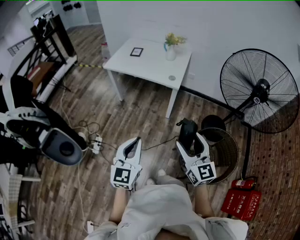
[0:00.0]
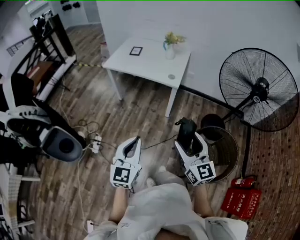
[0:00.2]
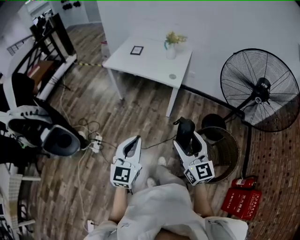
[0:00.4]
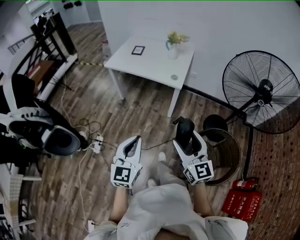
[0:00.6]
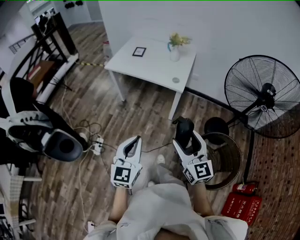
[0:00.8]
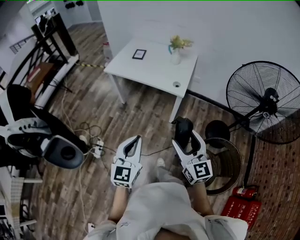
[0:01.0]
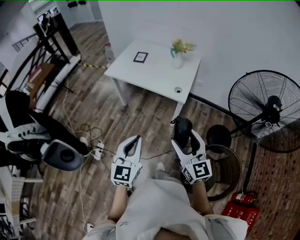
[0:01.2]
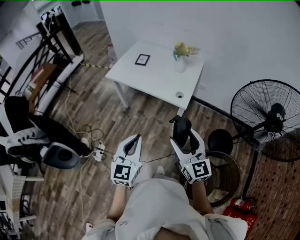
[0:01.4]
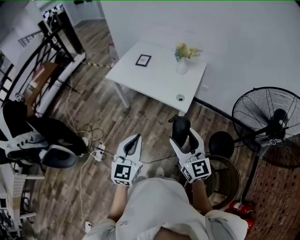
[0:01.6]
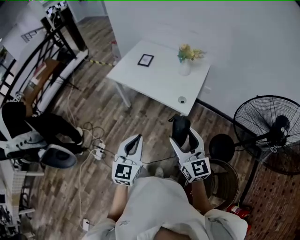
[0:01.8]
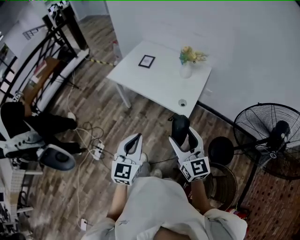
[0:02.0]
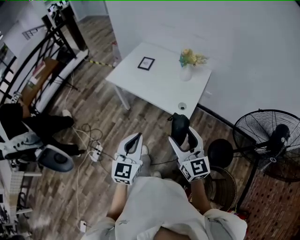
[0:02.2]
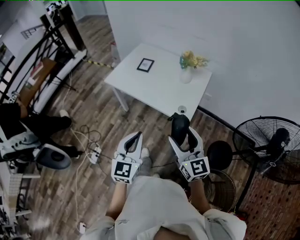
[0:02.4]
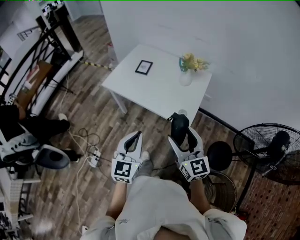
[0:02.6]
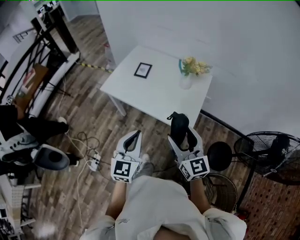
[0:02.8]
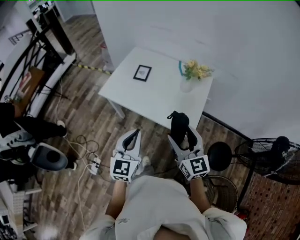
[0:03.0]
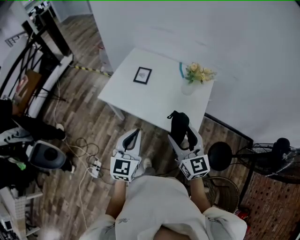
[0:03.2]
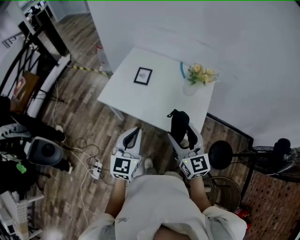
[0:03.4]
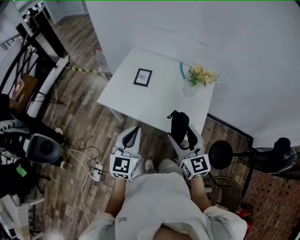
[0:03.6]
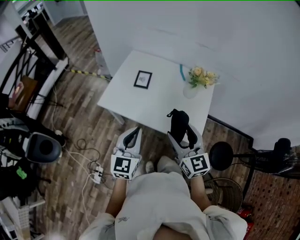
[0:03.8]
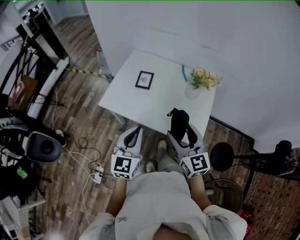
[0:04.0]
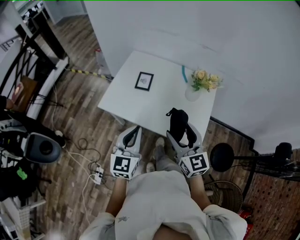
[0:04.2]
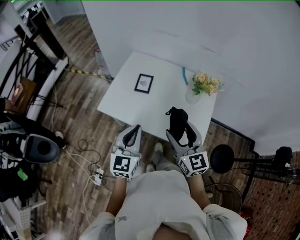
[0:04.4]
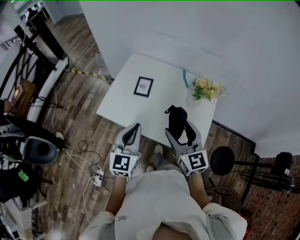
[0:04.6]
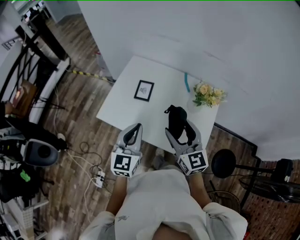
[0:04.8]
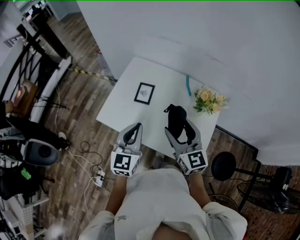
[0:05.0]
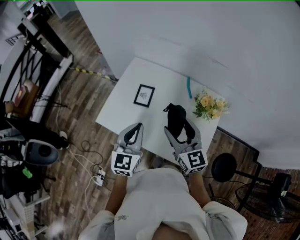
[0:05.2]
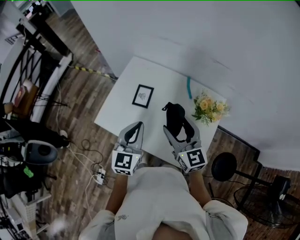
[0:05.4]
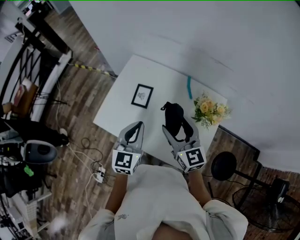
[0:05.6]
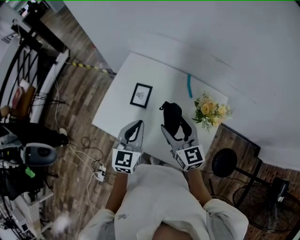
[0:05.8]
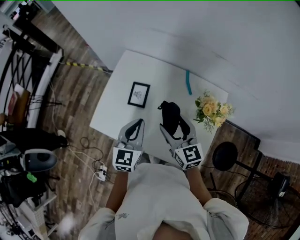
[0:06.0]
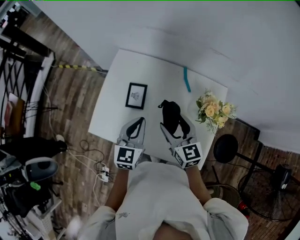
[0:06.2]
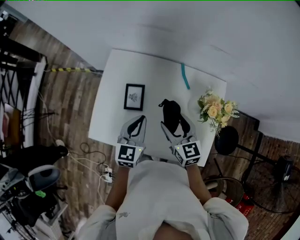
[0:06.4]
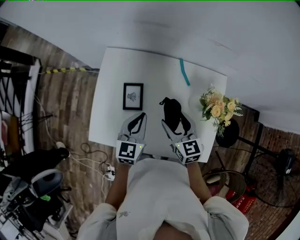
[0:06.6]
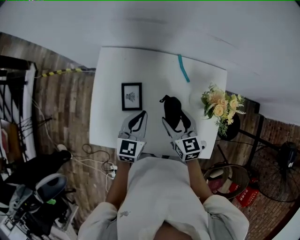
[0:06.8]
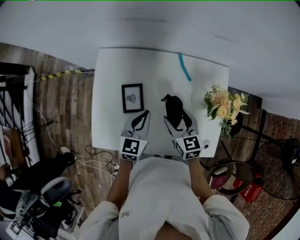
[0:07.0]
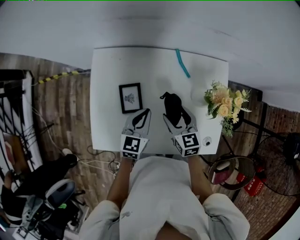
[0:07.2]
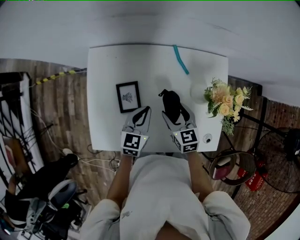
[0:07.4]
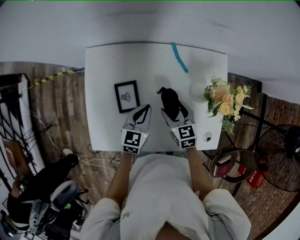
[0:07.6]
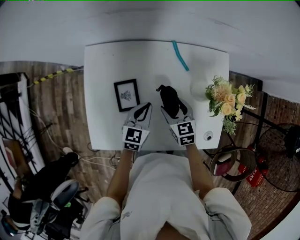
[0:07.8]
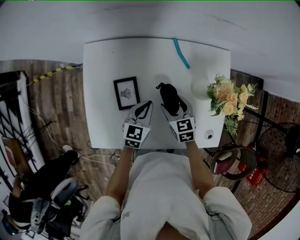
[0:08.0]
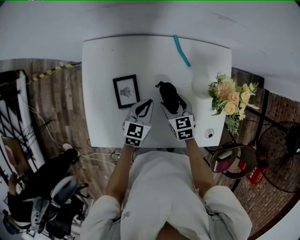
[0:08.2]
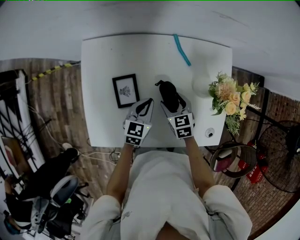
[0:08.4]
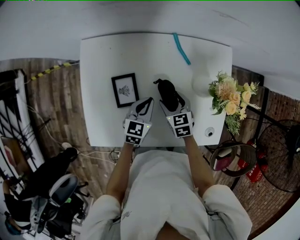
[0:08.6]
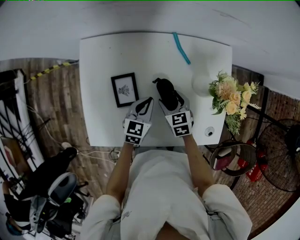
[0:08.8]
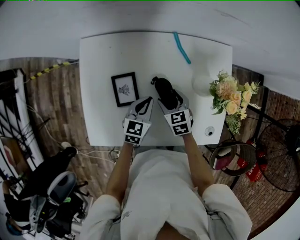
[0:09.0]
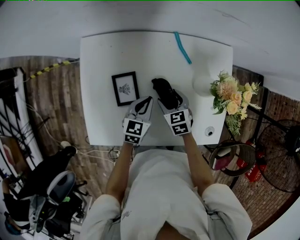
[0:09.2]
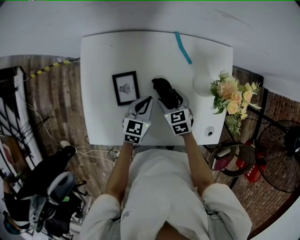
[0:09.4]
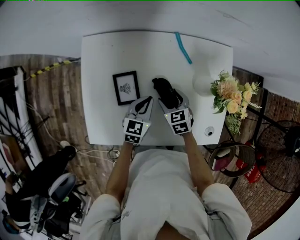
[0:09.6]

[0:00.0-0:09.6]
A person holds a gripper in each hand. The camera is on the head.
0:00.0 to 0:01.6: Both grippers move forward, about 25 cm.
0:01.6 to 0:03.2: The grippers both shift forward by about 30 cm.
0:03.2 to 0:04.8: Both grippers move forward, approximately 20 cm.
0:04.8 to 0:06.4: Both grippers move forward and downward, about 20 cm. The right gripper changes its angle by roughly 20 degrees.
0:06.4 to 0:08.0: The right gripper shifts some 15 cm downward, and rotates about 20 degrees. Meanwhile the left gripper travels downward and forward by roughly 15 cm, and swivels about 20 degrees.
0:08.0 to 0:09.6: The grippers stay close to where they were, moving slightly.

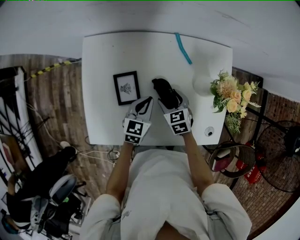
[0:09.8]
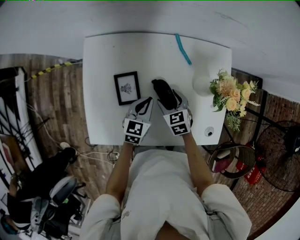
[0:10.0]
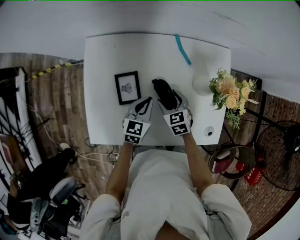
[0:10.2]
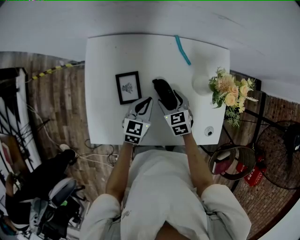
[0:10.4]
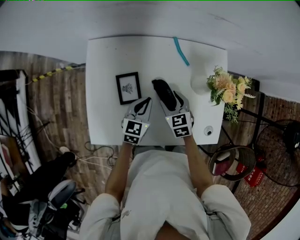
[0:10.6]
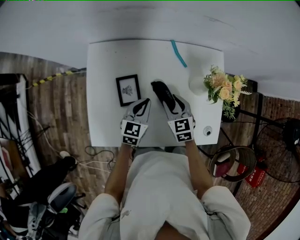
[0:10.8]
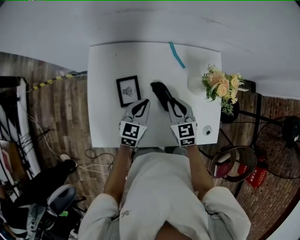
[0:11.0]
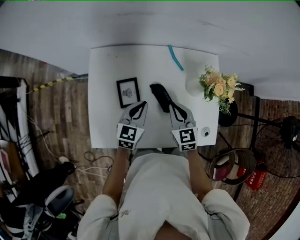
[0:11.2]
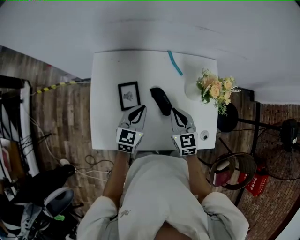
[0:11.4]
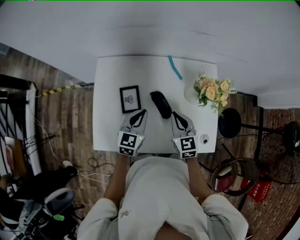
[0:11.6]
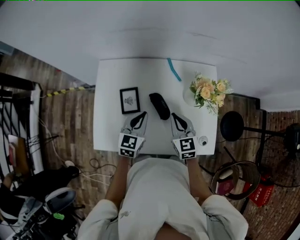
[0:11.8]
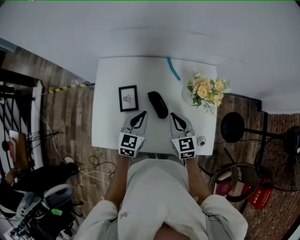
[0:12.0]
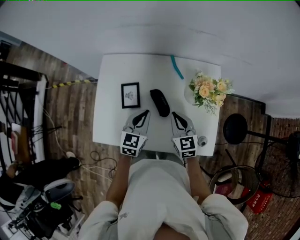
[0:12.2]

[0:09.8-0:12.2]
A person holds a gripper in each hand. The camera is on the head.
0:09.8 to 0:11.0: The left gripper travels upward by approximately 5 cm. The right gripper goes roughly 10 cm upward, and closes its fingers.
0:11.0 to 0:12.2: The right gripper travels to the right by roughly 5 cm, while the left gripper shifts by about 5 cm.

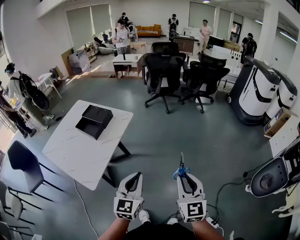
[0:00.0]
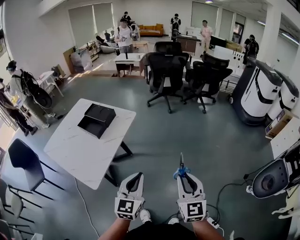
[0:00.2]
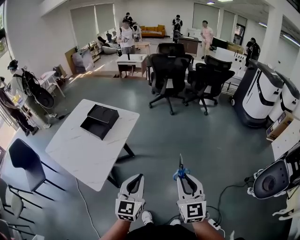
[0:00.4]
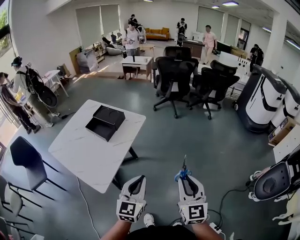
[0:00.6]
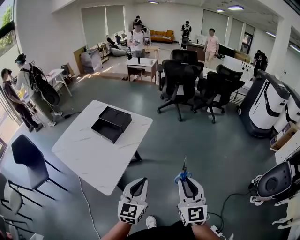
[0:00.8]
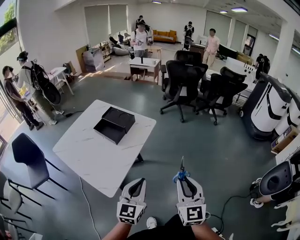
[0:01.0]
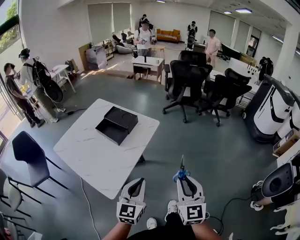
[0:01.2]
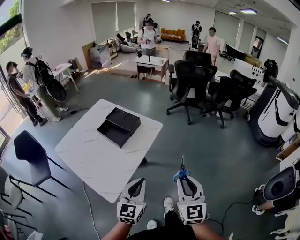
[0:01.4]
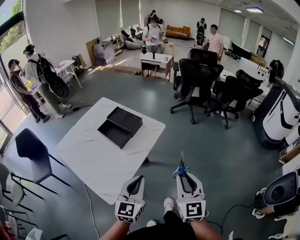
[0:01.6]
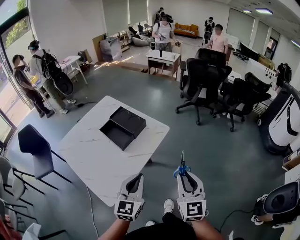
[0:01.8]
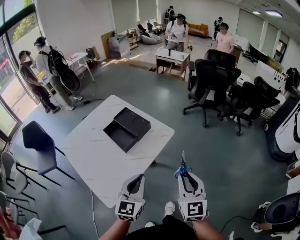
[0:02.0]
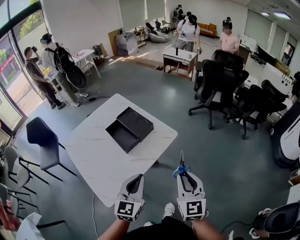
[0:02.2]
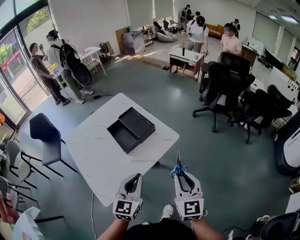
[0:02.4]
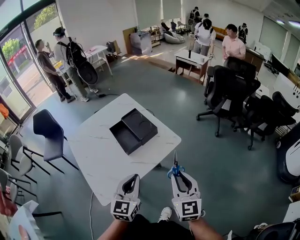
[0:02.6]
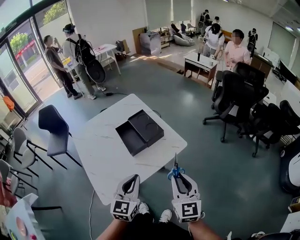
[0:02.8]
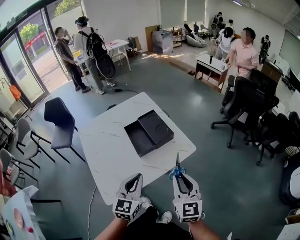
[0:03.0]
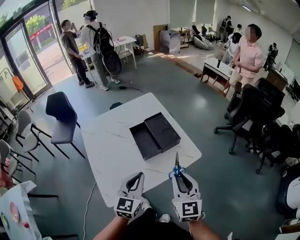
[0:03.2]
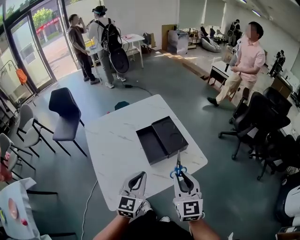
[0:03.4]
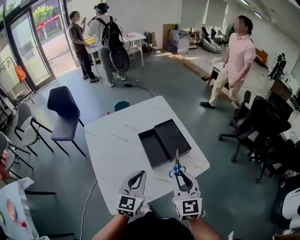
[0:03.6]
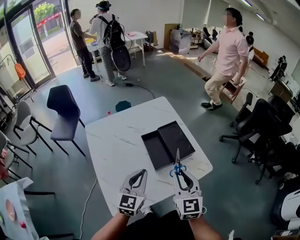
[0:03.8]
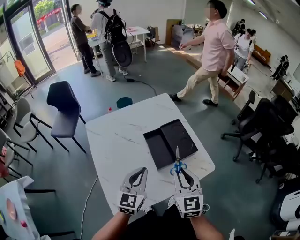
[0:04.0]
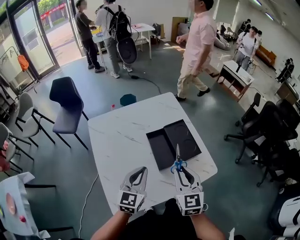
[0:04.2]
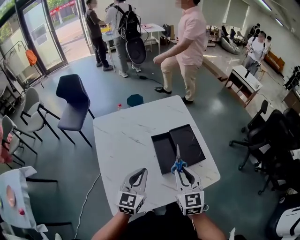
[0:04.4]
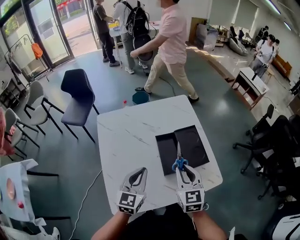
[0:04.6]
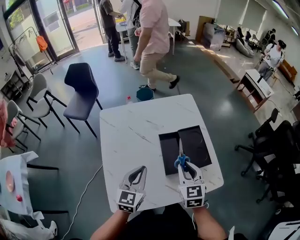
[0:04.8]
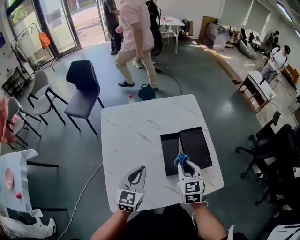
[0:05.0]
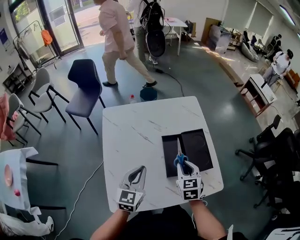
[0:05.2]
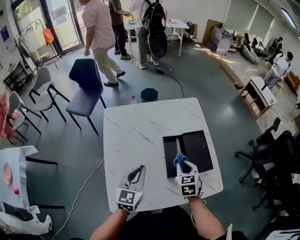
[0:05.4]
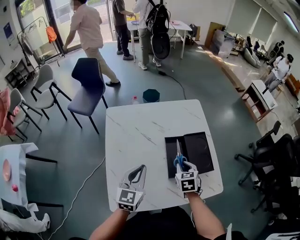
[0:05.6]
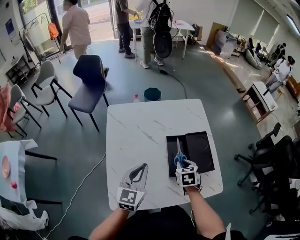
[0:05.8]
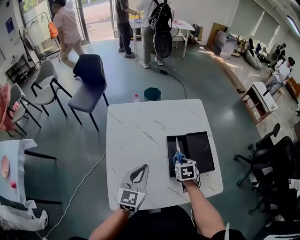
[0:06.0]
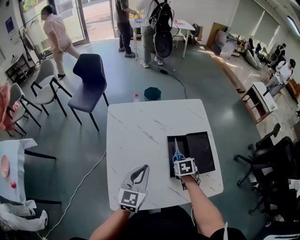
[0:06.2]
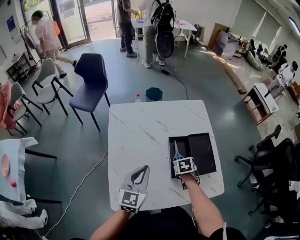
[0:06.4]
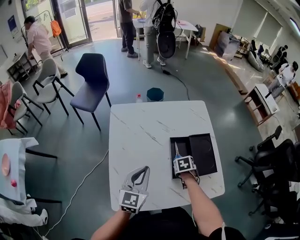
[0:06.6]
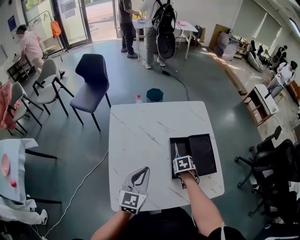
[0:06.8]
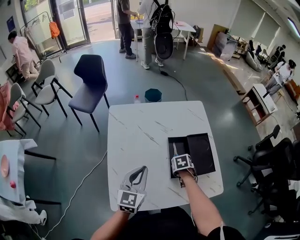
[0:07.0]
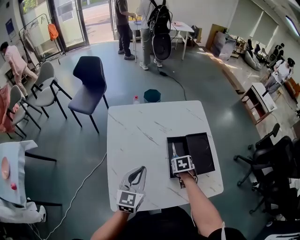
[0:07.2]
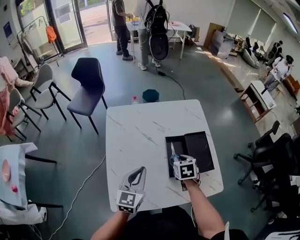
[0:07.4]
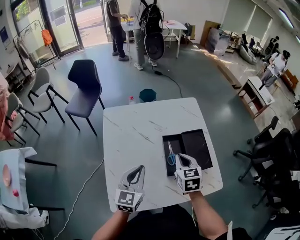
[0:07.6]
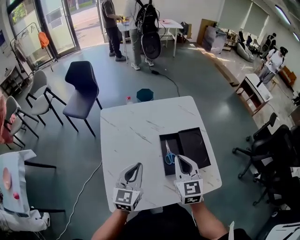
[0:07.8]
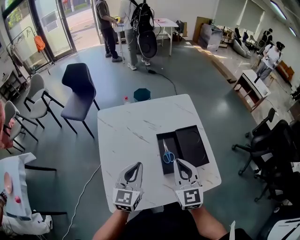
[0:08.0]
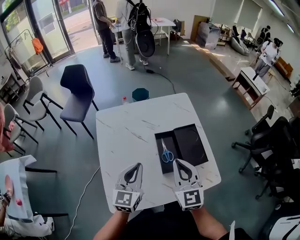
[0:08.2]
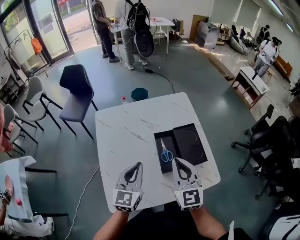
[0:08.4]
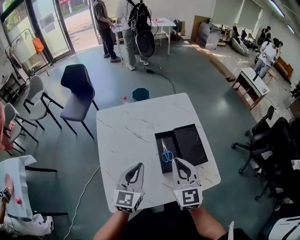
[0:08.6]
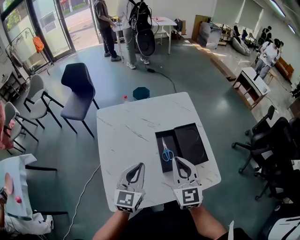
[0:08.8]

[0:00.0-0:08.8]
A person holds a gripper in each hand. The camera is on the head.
0:00.0 to 0:01.4: Both grippers move to the left and forward, some 20 cm.
0:01.4 to 0:03.0: The left gripper changes place by some 15 cm, and swivels about 30 degrees; the right gripper changes place by some 25 cm, and changes its angle by approximately 30 degrees.
0:03.0 to 0:04.4: The two grippers go some 20 cm forward and to the left. The right gripper rotates some 20 degrees.
0:04.4 to 0:05.8: The left gripper shifts by some 5 cm. The right gripper shifts some 20 cm downward and forward, and angles its fingers downward, by approximately 30 degrees.
0:05.8 to 0:07.4: The right gripper goes downward and returns, some 10 cm each way.
0:07.4 to 0:08.8: The right gripper is displaced upward and backward by roughly 20 cm, and points its fingers some 40 degrees further upward, while the left gripper ends up about 5 cm from where it was.

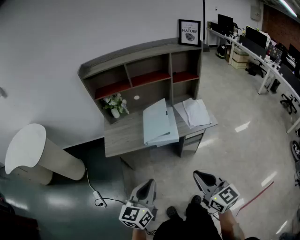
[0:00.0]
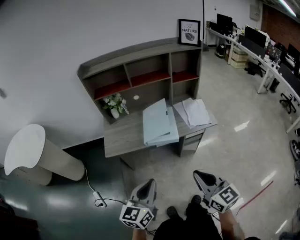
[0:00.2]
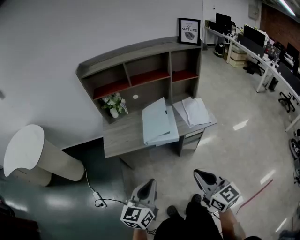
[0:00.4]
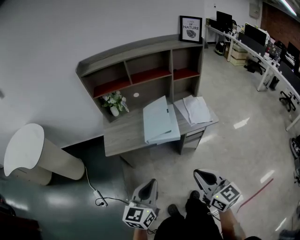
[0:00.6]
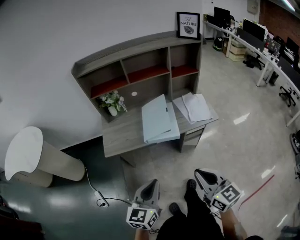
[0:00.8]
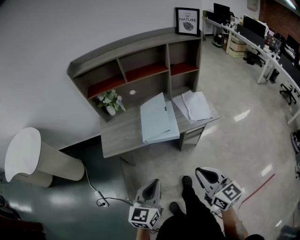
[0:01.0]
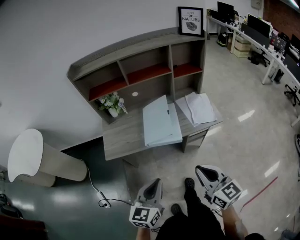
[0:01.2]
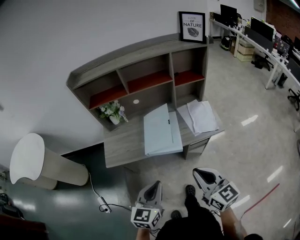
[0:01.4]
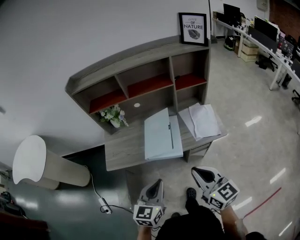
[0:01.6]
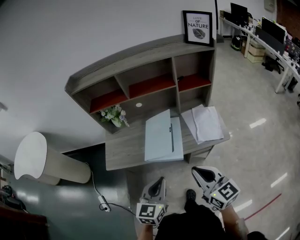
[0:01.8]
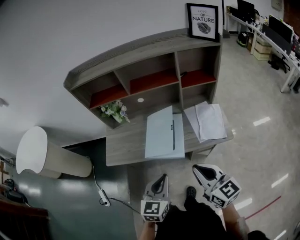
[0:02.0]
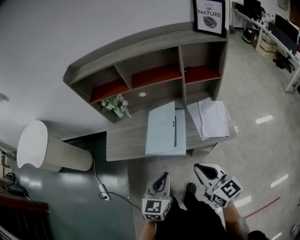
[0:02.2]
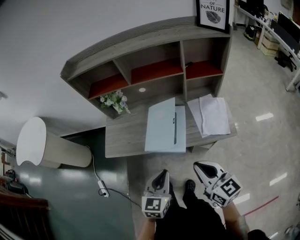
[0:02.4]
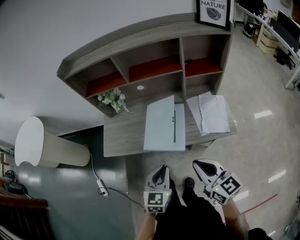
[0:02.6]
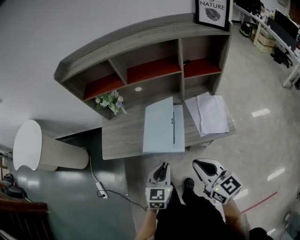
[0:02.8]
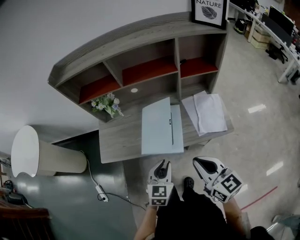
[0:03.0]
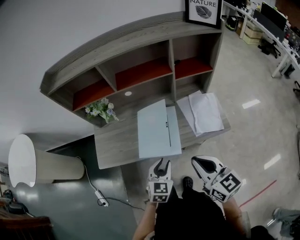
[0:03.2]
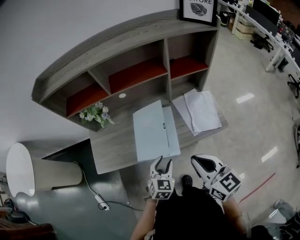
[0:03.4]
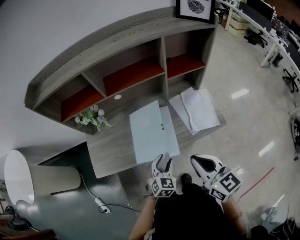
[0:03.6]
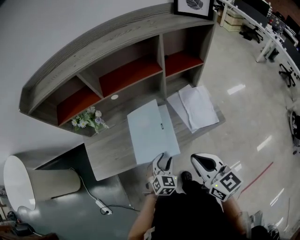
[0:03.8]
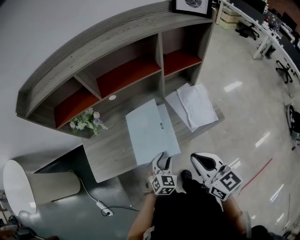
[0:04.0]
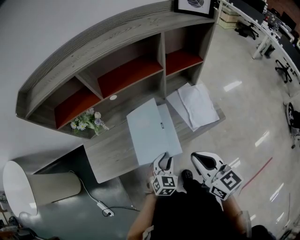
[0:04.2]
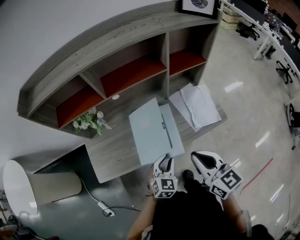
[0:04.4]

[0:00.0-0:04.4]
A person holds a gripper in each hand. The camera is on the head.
0:00.0 to 0:01.4: The two grippers go some 10 cm forward.
0:01.4 to 0:03.0: The left gripper travels forward, downward and to the right by some 20 cm. The right gripper travels forward and to the right by approximately 15 cm.
0:03.0 to 0:04.4: The right gripper heads forward, covering approximately 5 cm. The left gripper is displaced downward and forward by about 10 cm, and turns by about 20 degrees.
